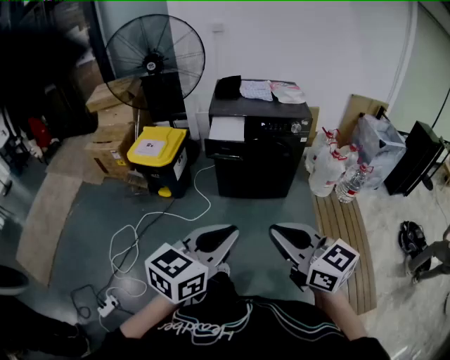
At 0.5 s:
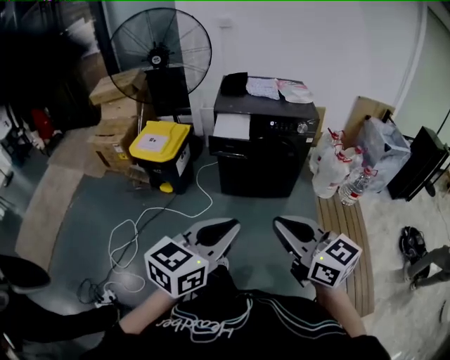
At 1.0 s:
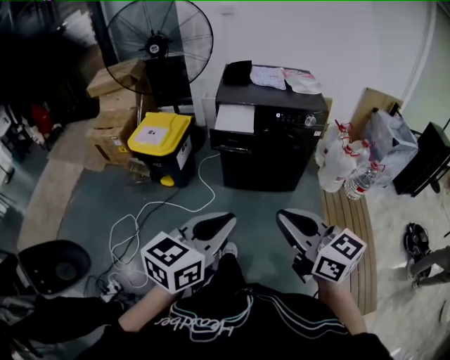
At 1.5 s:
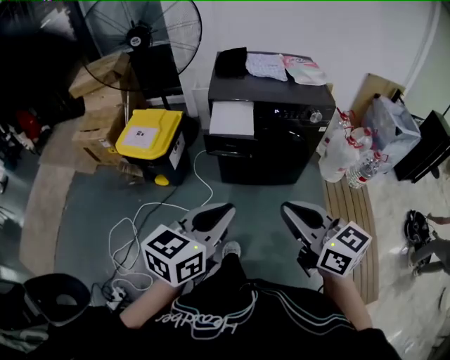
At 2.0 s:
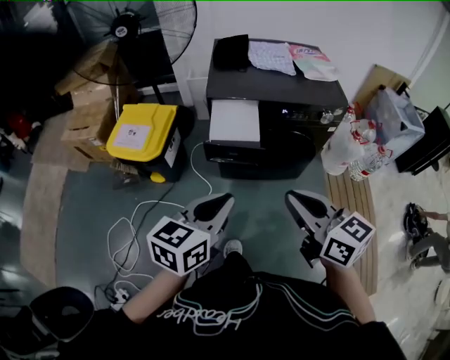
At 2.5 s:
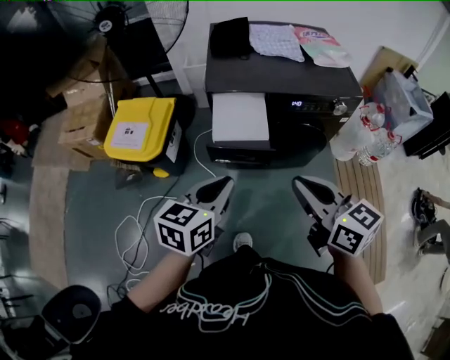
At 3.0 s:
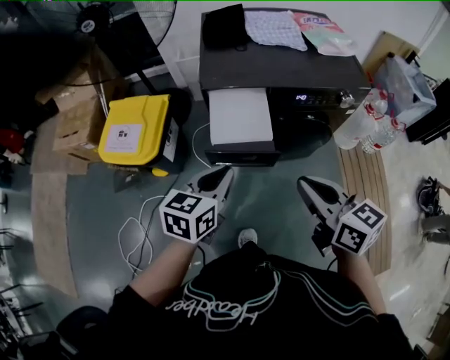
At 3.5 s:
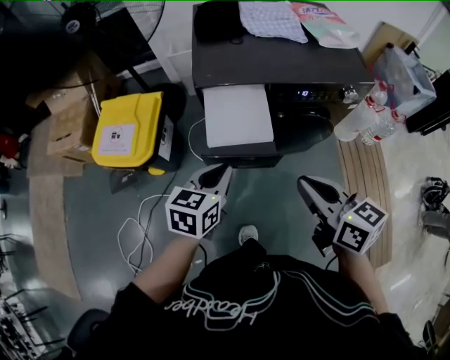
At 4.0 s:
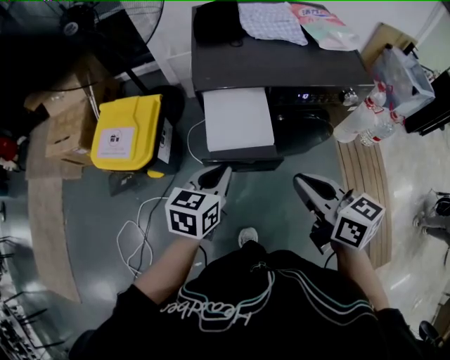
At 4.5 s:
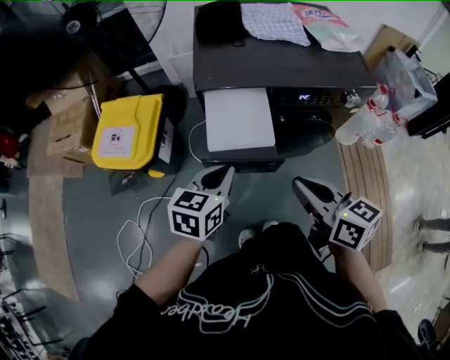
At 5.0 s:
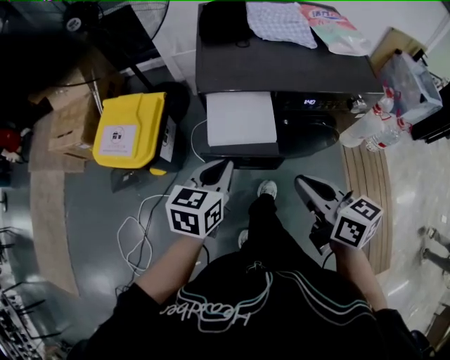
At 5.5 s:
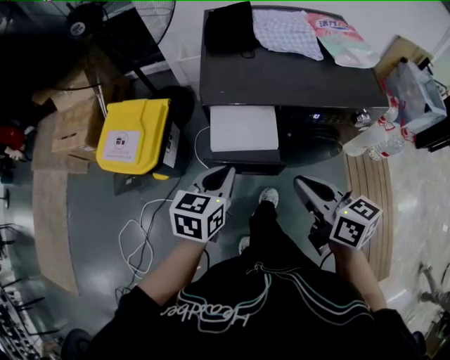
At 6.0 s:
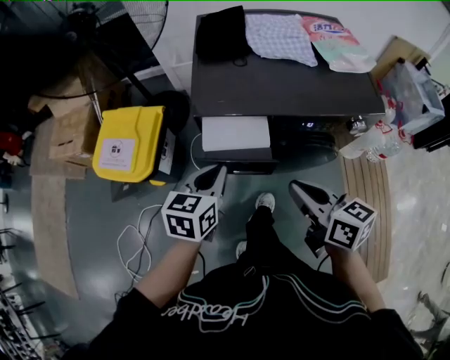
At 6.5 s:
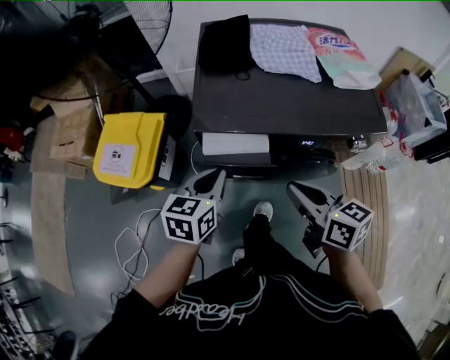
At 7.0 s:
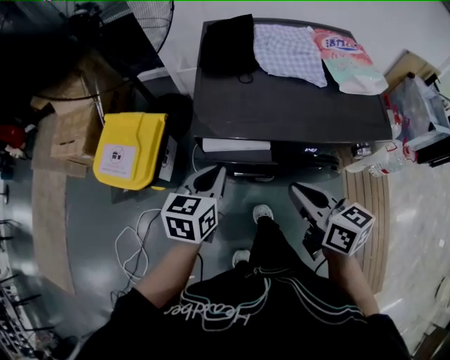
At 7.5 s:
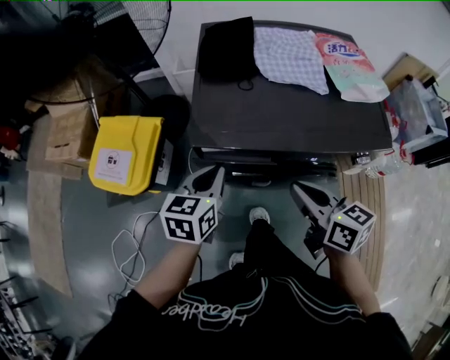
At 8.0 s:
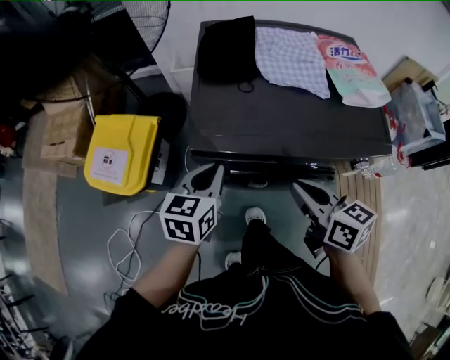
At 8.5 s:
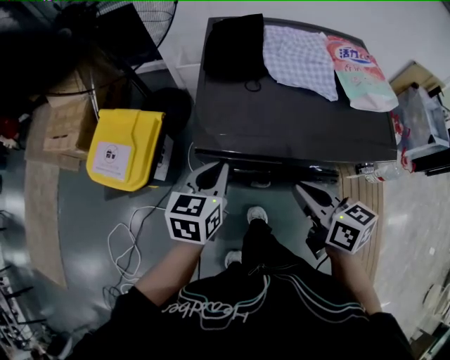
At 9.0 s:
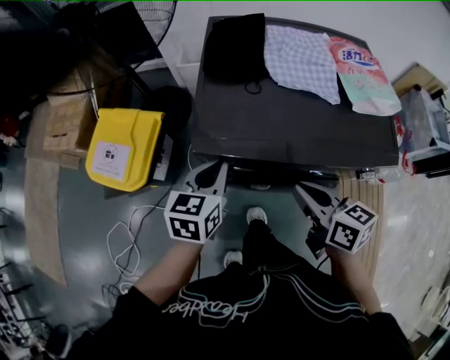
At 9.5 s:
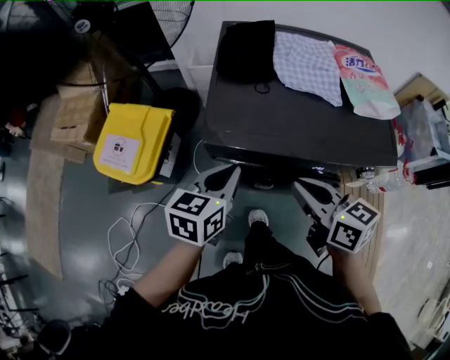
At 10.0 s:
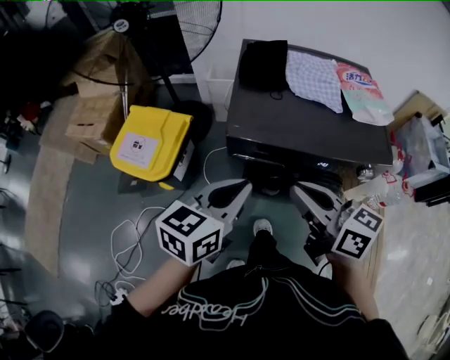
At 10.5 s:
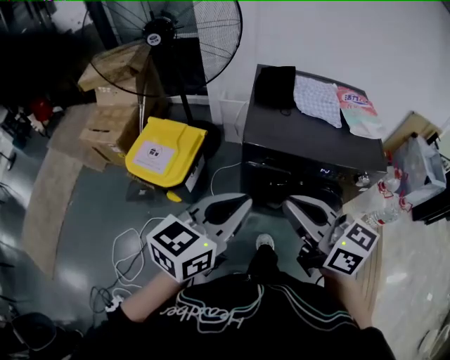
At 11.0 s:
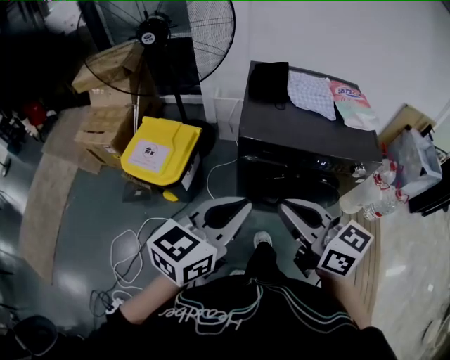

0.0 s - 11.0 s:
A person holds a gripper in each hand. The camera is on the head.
0.0 s - 2.0 s: Both grippers move forward, about 35 cm.
2.0 s - 3.5 s: Both grippers travel together forward and downward, some 20 cm.
3.5 s - 5.5 s: Both grippers travel together forward, roughly 5 cm.
5.5 s - 7.5 s: The grippers both shift forward by roughly 10 cm.
7.5 s - 9.0 s: There are only small adjustments of the grippers.
9.0 s - 11.0 s: The right gripper shifts approximately 30 cm backward, upward and to the left, and swivels roughly 30 degrees. The left gripper heads backward and upward, covering about 35 cm, and rotates some 30 degrees.

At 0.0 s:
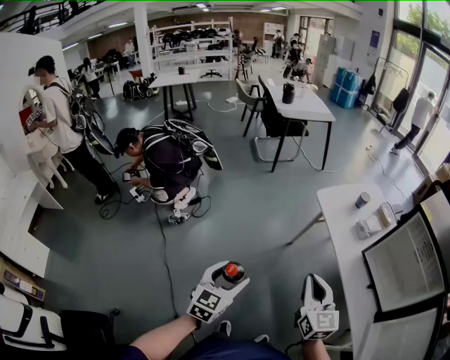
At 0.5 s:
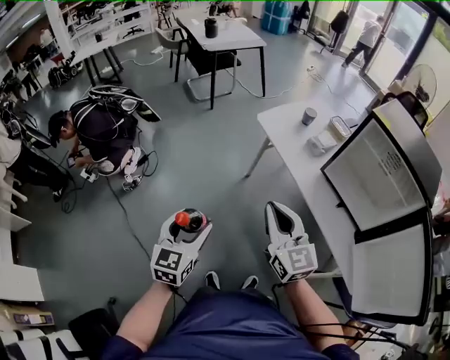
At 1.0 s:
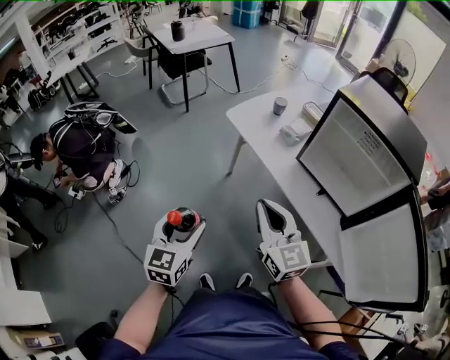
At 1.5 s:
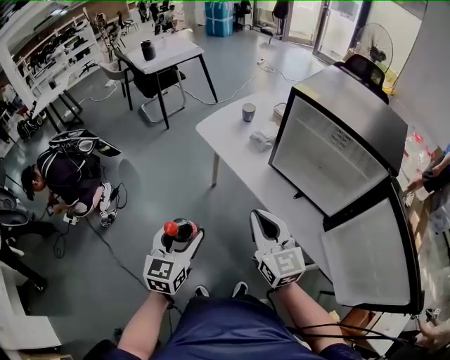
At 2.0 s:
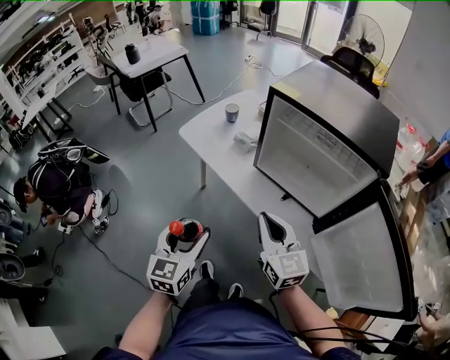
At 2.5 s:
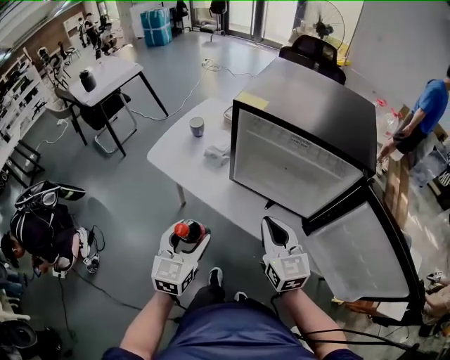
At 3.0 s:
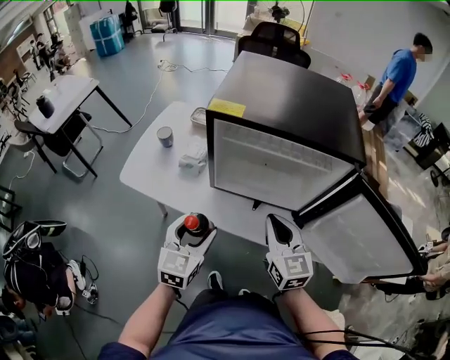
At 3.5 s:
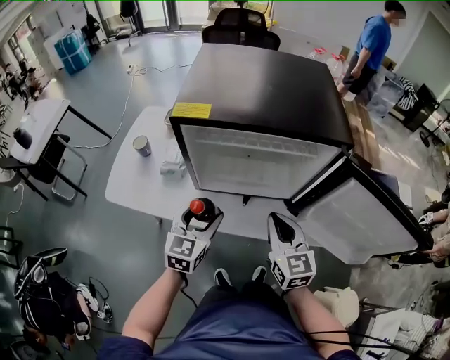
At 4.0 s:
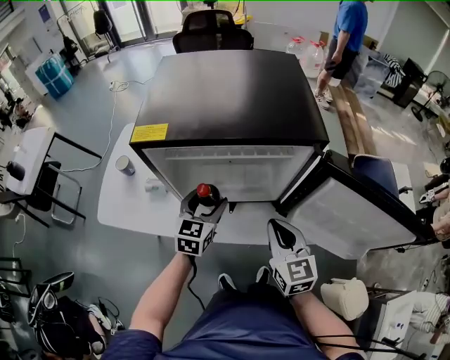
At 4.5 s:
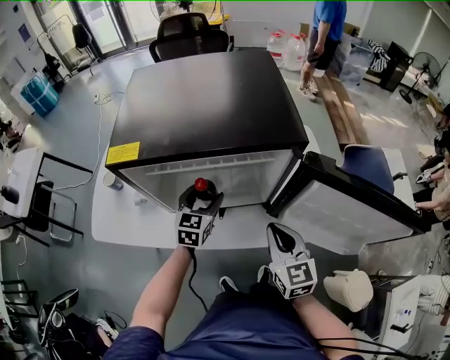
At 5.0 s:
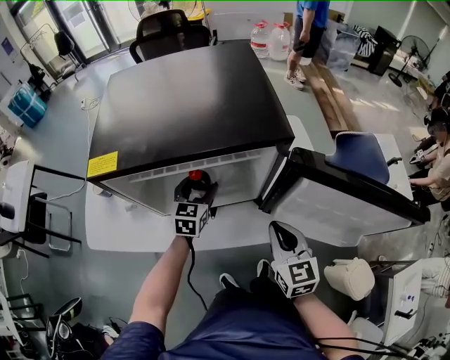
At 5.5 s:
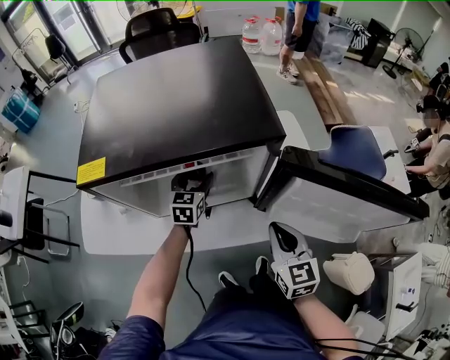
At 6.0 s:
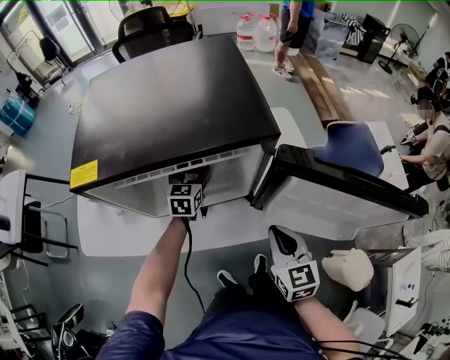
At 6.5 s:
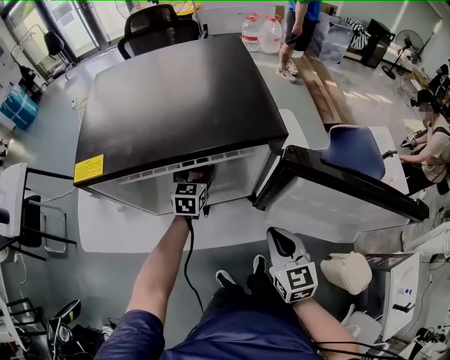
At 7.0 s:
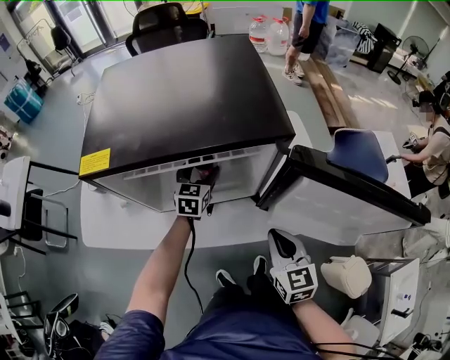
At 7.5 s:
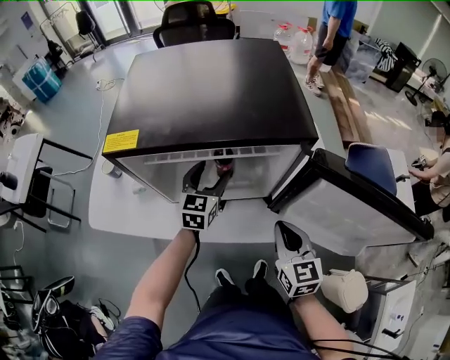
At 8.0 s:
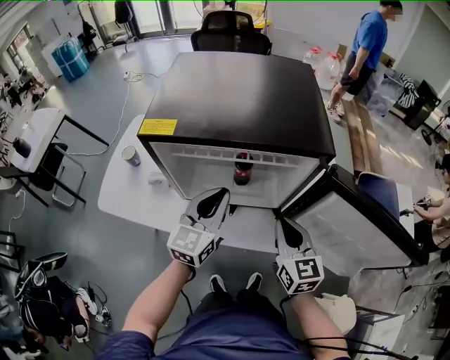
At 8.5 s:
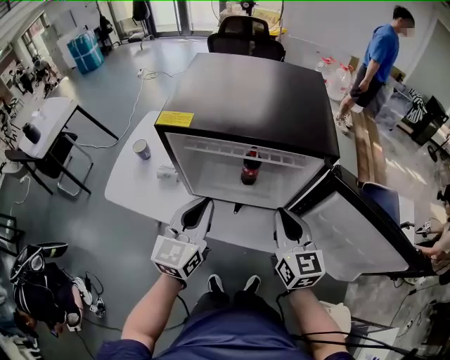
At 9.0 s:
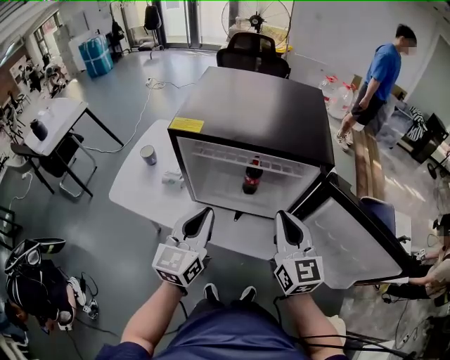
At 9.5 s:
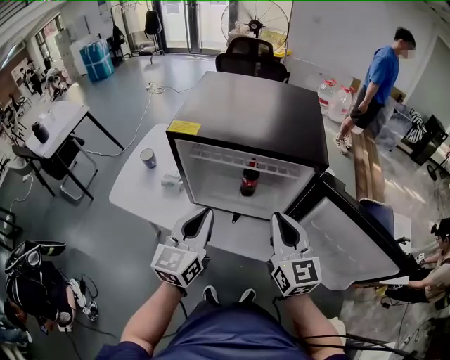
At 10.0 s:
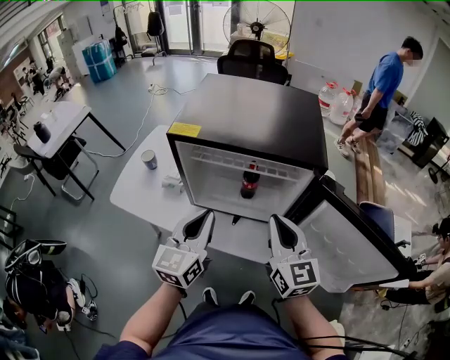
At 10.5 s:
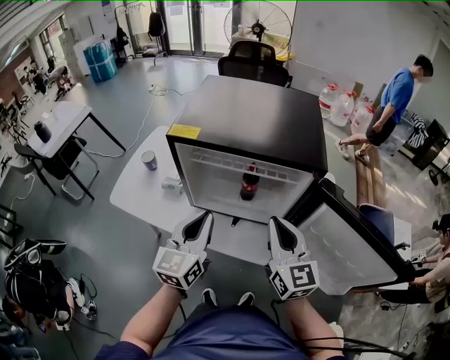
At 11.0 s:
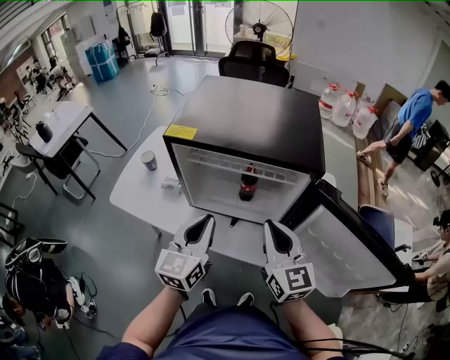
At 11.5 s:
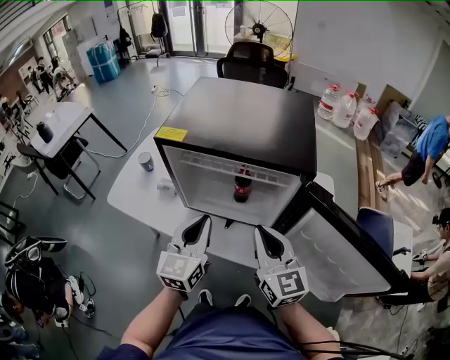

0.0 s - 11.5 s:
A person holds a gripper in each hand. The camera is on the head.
0.0 s - 2.0 s: The right gripper is displaced to the right by some 25 cm. Meanwhile the left gripper shifts about 30 cm to the right and forward.
2.0 s - 4.0 s: The right gripper changes place by some 20 cm, and swivels about 40 degrees. The left gripper ends up some 40 cm from where it was, and rotates some 50 degrees.
4.0 s - 6.0 s: The right gripper is displaced to the right by about 10 cm, while the left gripper shifts roughly 20 cm forward, to the right and downward.
6.0 s - 7.5 s: The left gripper shifts about 10 cm backward and upward.
7.5 s - 9.5 s: The left gripper travels backward, upward and to the left by roughly 25 cm, rotates roughly 20 degrees, and closes, while the right gripper moves upward and to the left, some 15 cm, and changes its angle by about 20 degrees.
9.5 s - 11.5 s: The grippers stay close to where they were, moving slightly.

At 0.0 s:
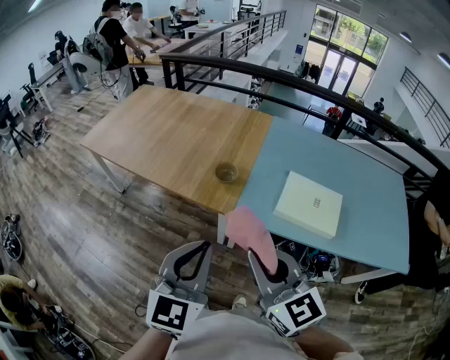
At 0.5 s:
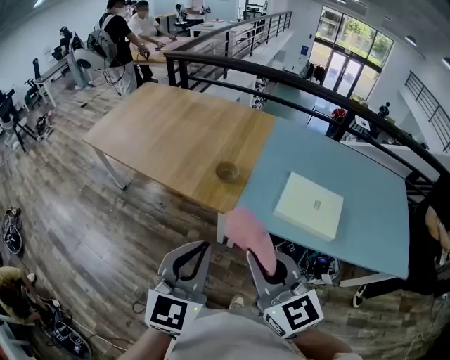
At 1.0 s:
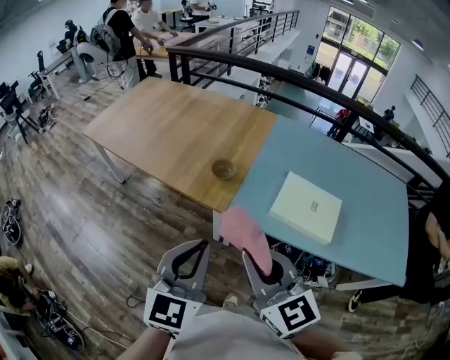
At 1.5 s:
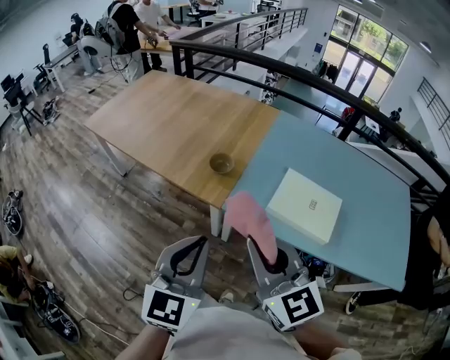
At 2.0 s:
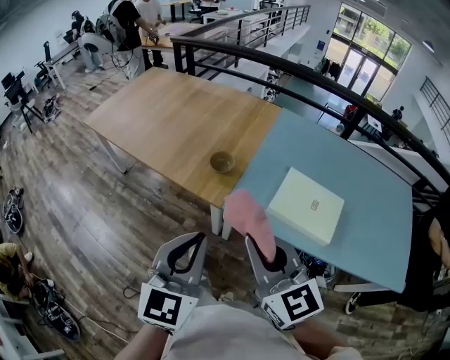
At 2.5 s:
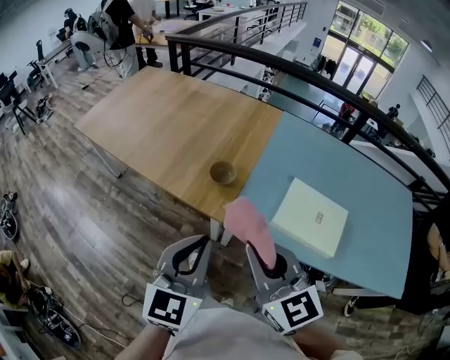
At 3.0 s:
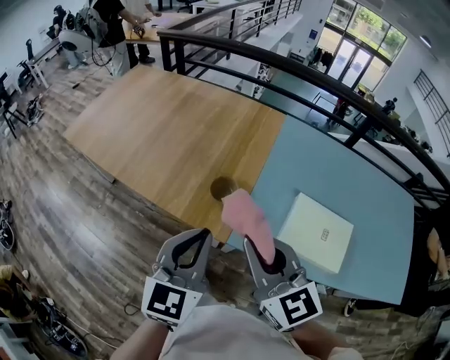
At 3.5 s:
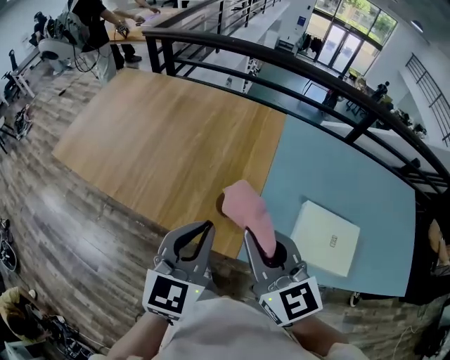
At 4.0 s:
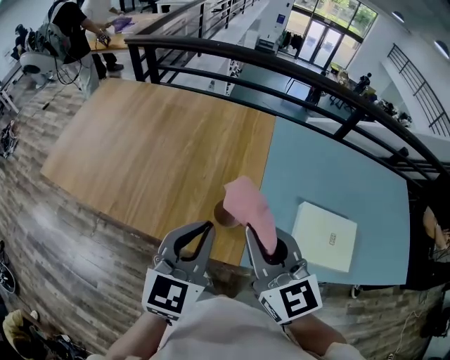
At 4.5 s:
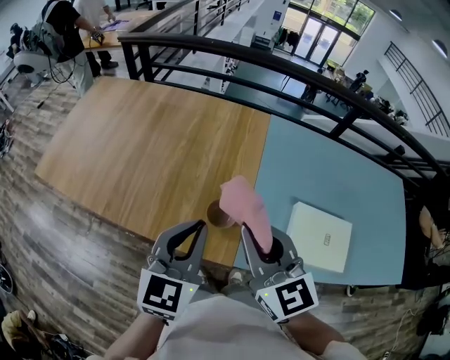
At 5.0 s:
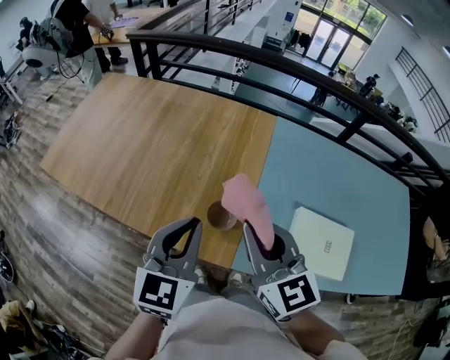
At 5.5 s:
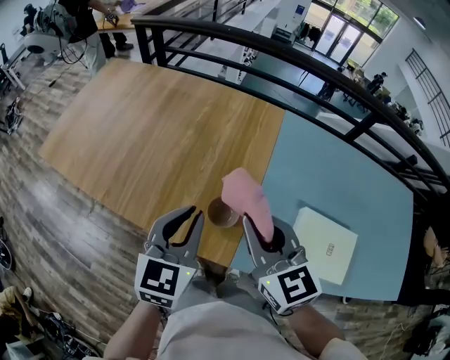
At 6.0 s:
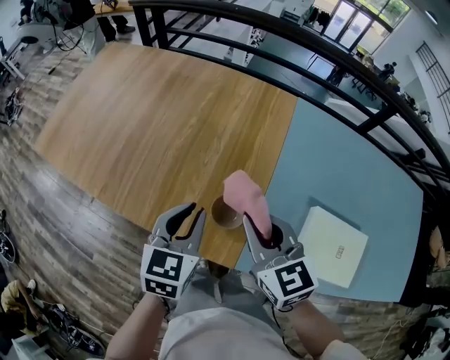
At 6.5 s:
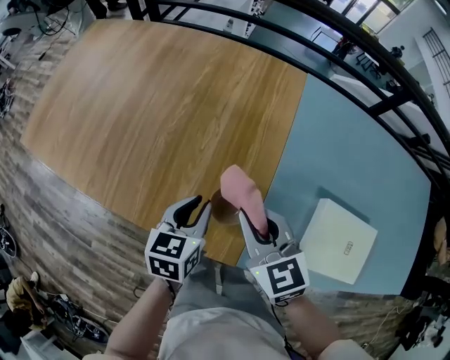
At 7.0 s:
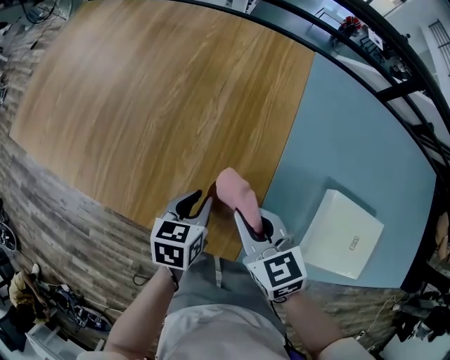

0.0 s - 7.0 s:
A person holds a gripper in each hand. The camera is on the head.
0.0 s - 2.0 s: The two grippers go some 5 cm to the right.
2.0 s - 3.5 s: The two grippers go about 30 cm forward.
3.5 s - 5.0 s: Both grippers move forward, roughly 5 cm.
5.0 s - 7.0 s: The grippers both shift downward by some 30 cm. The right gripper changes its angle by approximately 30 degrees, while the left gripper tips its fingers downward by approximately 30 degrees.
